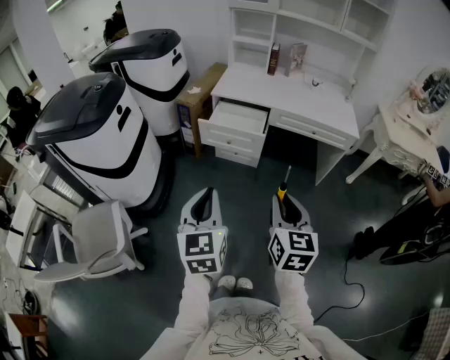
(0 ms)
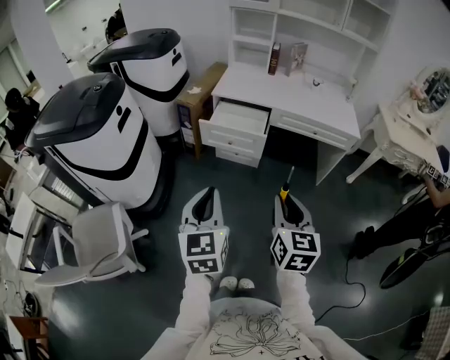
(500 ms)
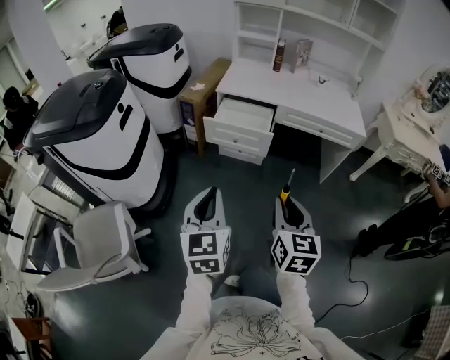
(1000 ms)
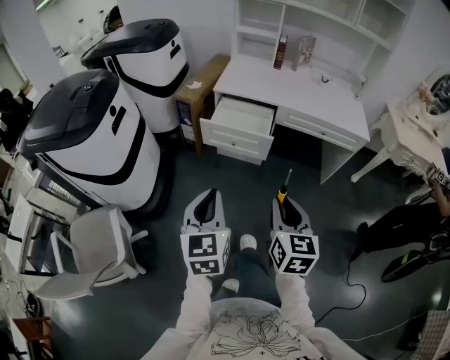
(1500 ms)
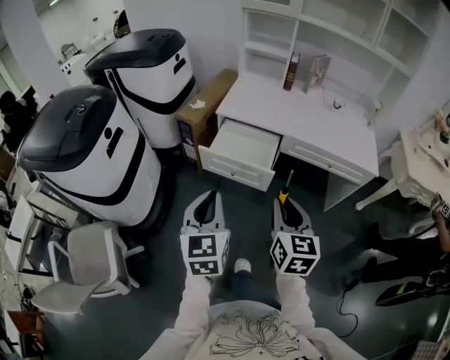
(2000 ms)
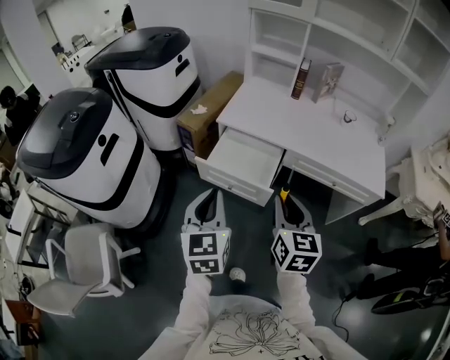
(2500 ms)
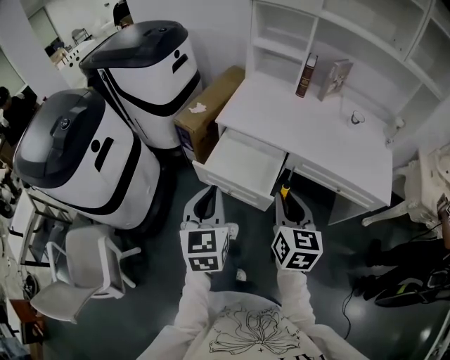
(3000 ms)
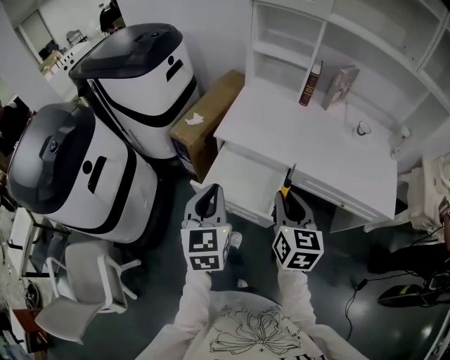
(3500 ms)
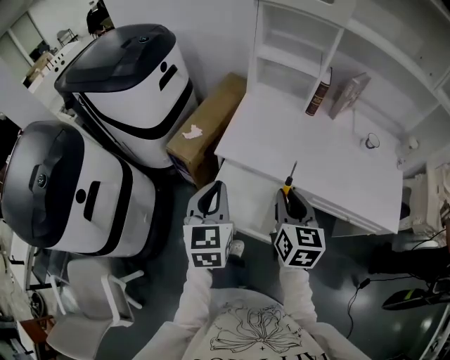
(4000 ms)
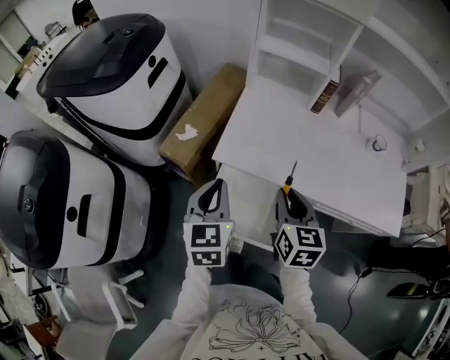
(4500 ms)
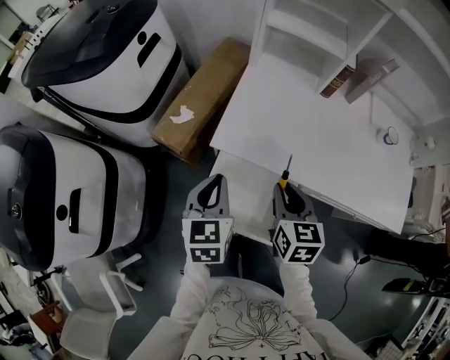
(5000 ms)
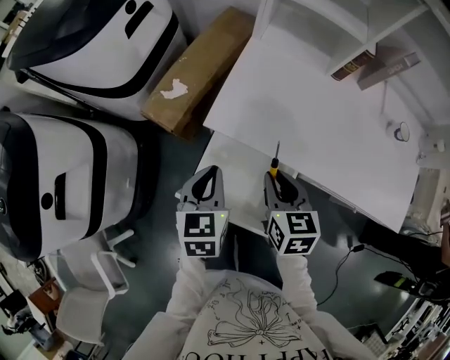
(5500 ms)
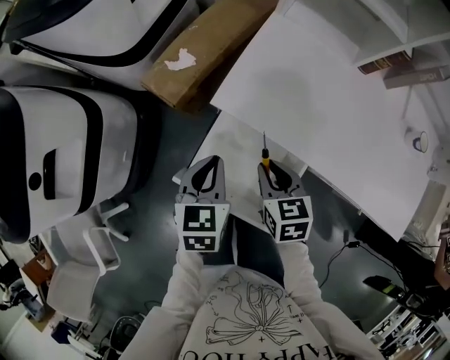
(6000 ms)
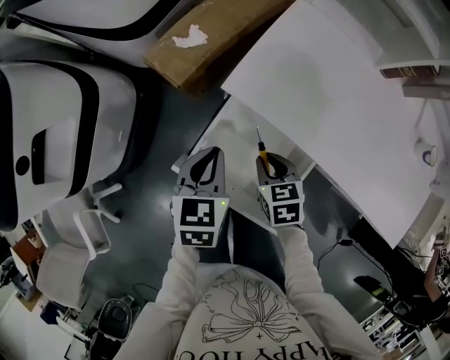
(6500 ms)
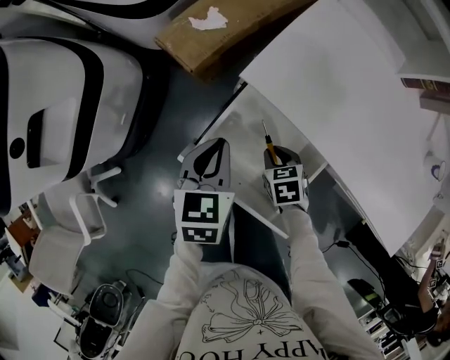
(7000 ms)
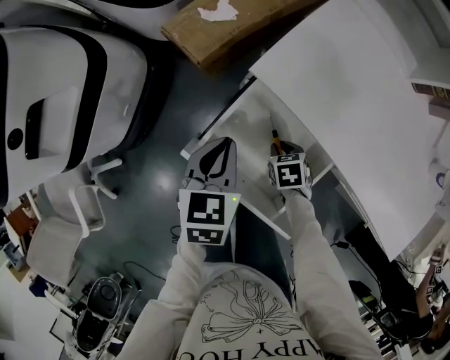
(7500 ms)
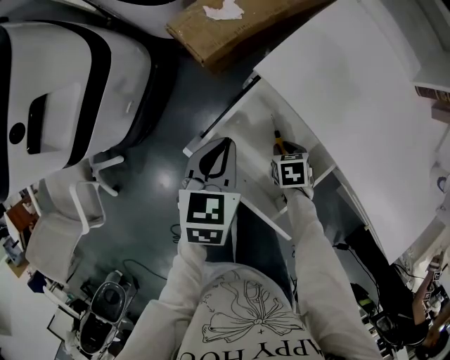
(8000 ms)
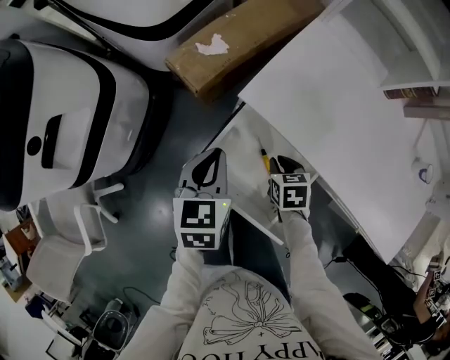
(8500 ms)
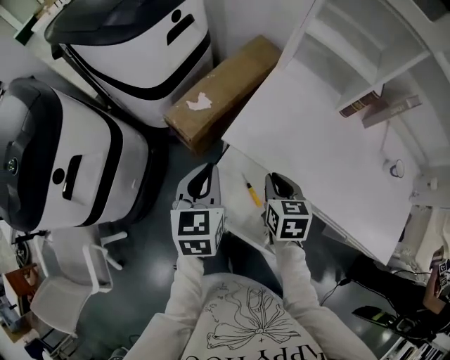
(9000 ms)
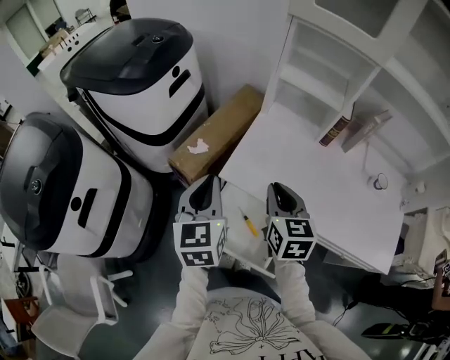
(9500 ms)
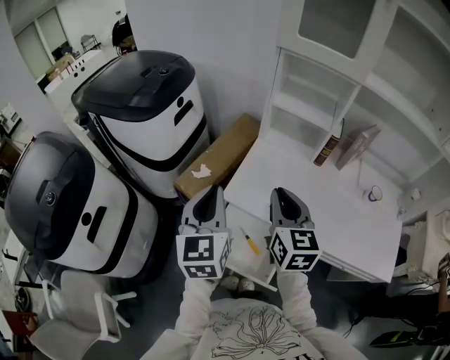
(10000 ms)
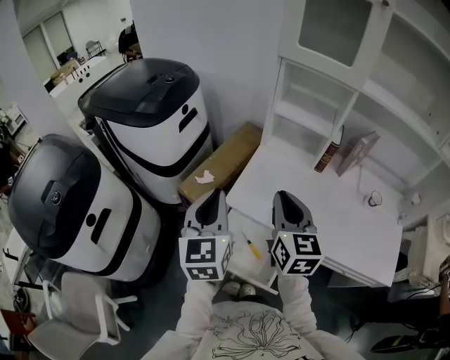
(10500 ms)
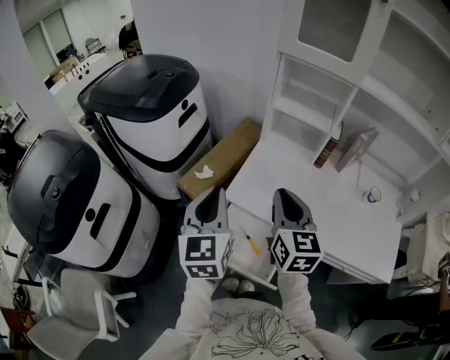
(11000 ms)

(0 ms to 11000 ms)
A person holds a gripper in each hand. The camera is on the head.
0 ms - 2000 ms: The grippers both shift forward by roughly 25 cm.
2000 ms - 3500 ms: The two grippers go approximately 25 cm forward.
3500 ms - 5500 ms: The grippers both shift forward and downward by approximately 25 cm. The right gripper turns by about 20 degrees. The left gripper swivels roughly 20 degrees.
5500 ms - 7500 ms: The left gripper moves downward, about 10 cm. The right gripper shifts some 30 cm downward, and angles its fingers downward, by some 30 degrees.
7500 ms - 9000 ms: The right gripper goes approximately 30 cm upward, and angles its fingers upward, by roughly 30 degrees. Meanwhile the left gripper travels upward by some 15 cm.
9000 ms - 11000 ms: The grippers both shift upward by about 20 cm. The right gripper tilts its fingers roughly 30 degrees upward. The left gripper turns by some 20 degrees.

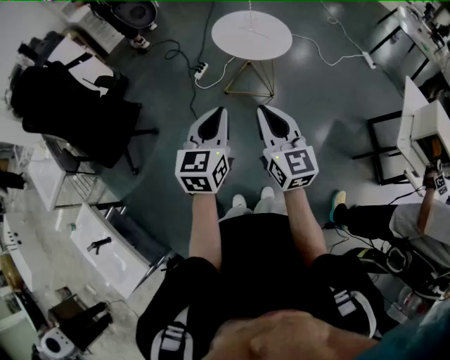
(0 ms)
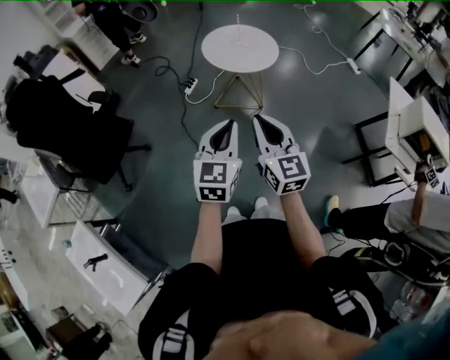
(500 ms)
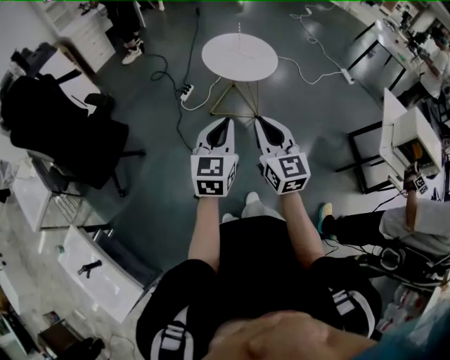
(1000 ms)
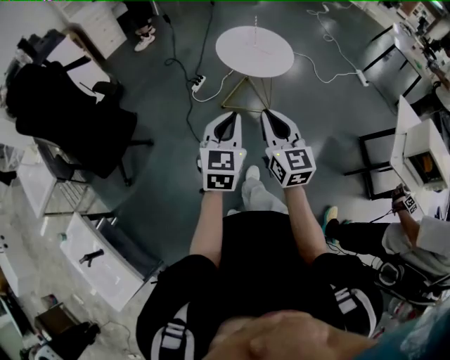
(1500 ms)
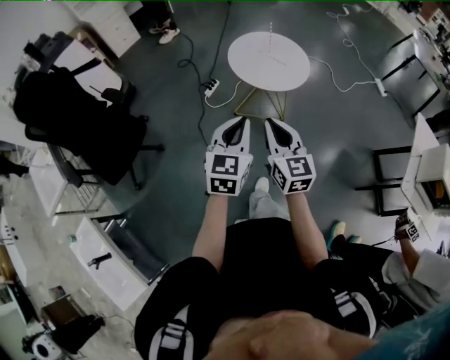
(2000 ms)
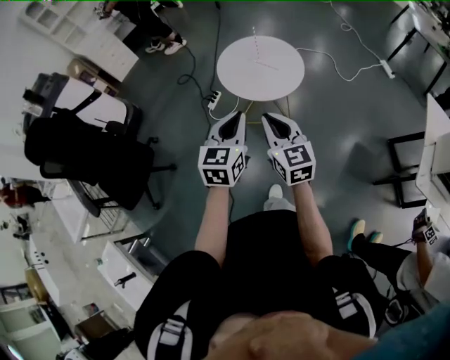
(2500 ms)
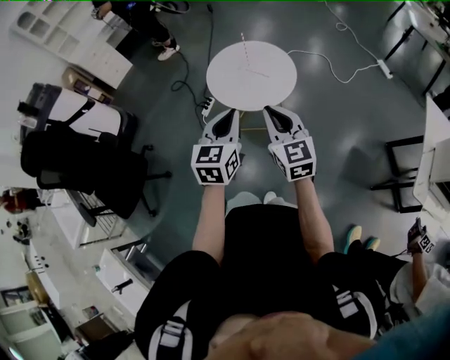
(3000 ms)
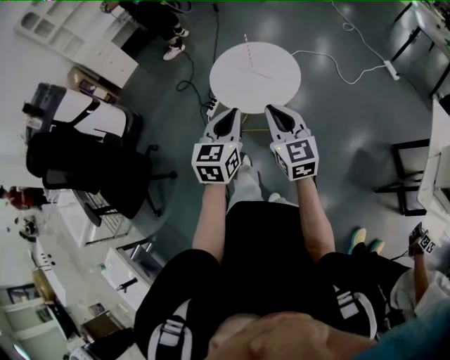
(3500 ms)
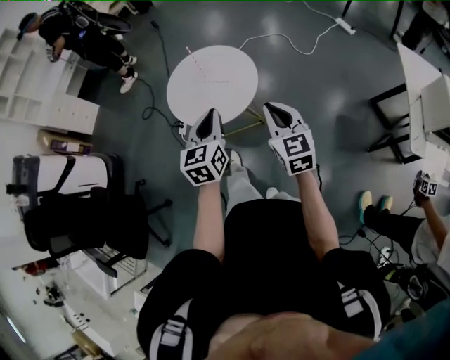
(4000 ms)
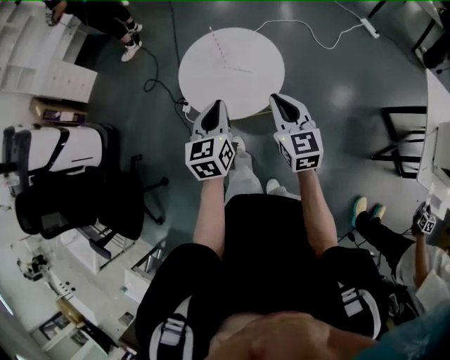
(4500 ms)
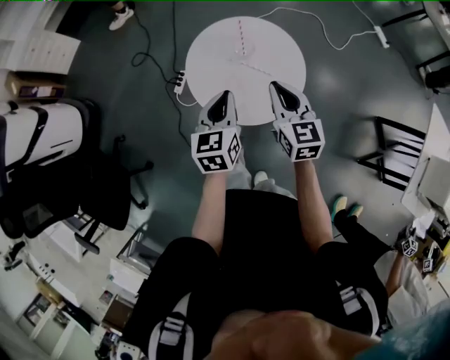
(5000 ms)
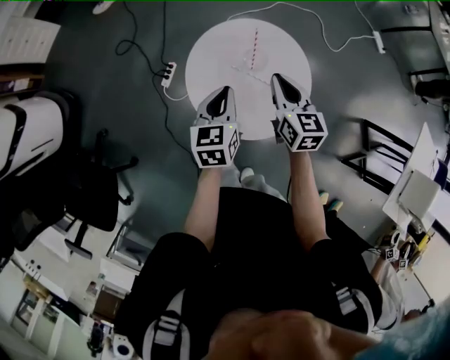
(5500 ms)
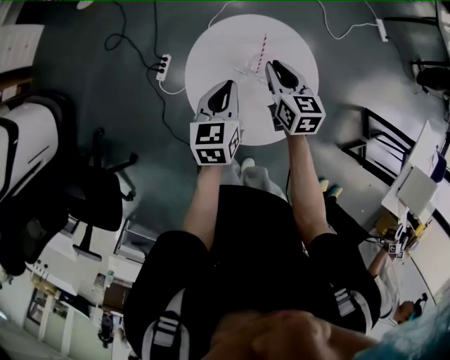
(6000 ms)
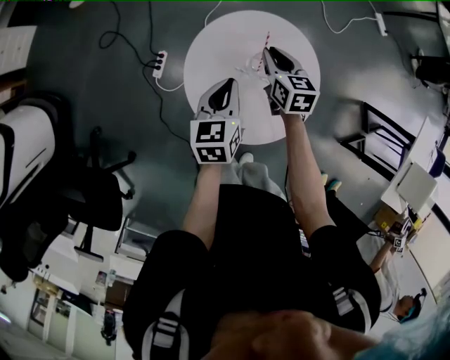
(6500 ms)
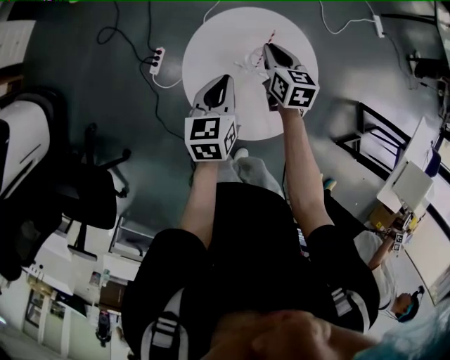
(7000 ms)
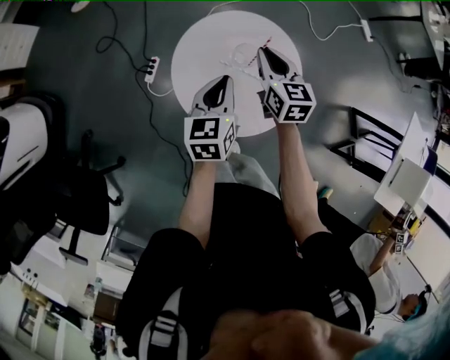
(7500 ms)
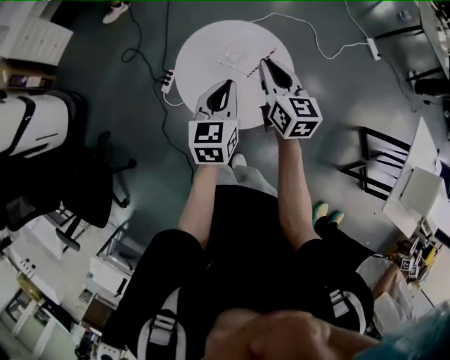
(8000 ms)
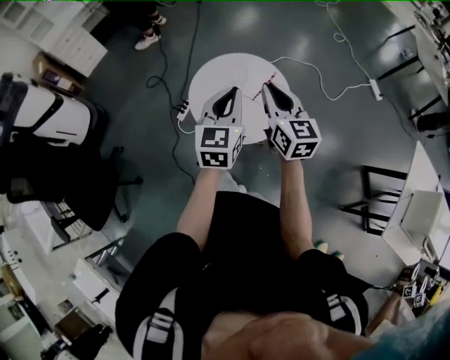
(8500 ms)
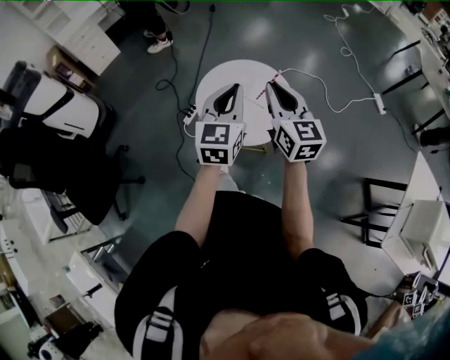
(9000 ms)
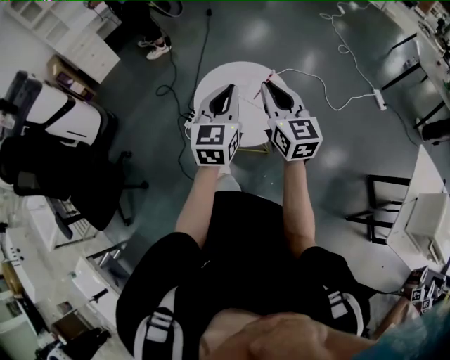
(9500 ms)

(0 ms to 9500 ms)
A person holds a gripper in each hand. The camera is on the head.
0 ms - 2000 ms: The right gripper shifts roughly 15 cm forward and downward. The left gripper shifts about 10 cm forward.
2000 ms - 4000 ms: The right gripper travels to the right and forward by approximately 30 cm. The left gripper moves forward and to the right, about 30 cm.
4000 ms - 5500 ms: The right gripper moves forward and to the left, approximately 40 cm. The left gripper moves forward, to the left and downward, roughly 35 cm, and changes its angle by some 20 degrees.
5500 ms - 7500 ms: The right gripper moves forward, roughly 5 cm, and reaches about 10 cm downward, then returns.
7500 ms - 9500 ms: The left gripper is displaced upward and backward by roughly 30 cm, and changes its angle by some 30 degrees, while the right gripper shifts some 35 cm backward and upward, and turns by roughly 30 degrees.

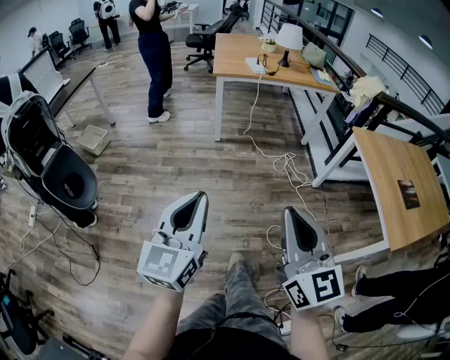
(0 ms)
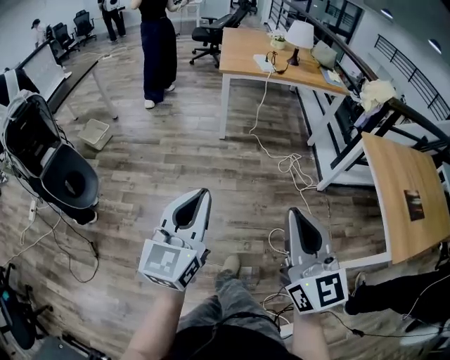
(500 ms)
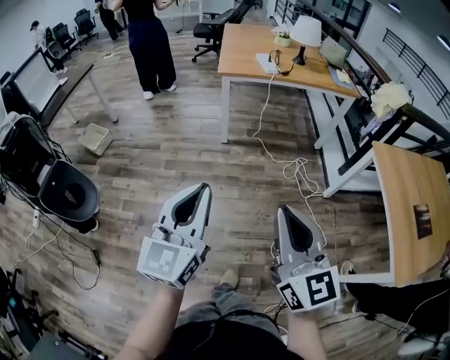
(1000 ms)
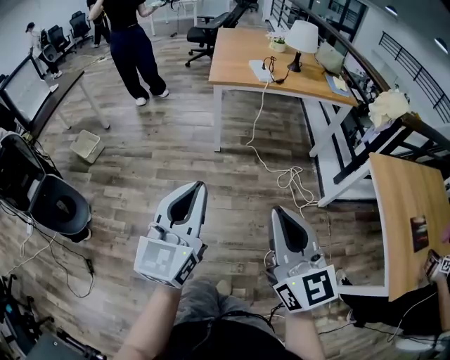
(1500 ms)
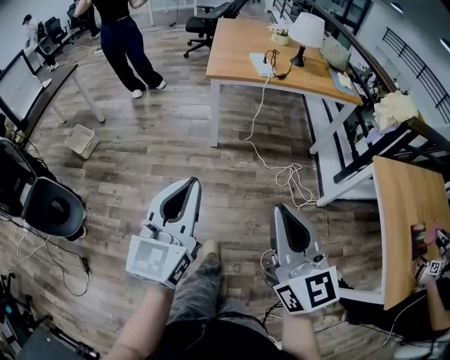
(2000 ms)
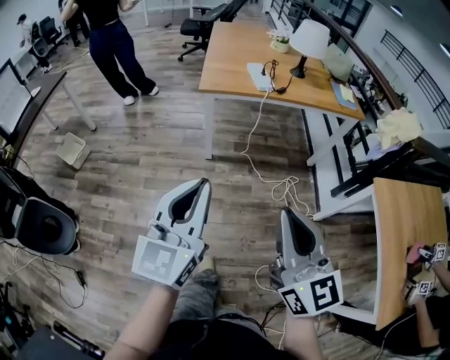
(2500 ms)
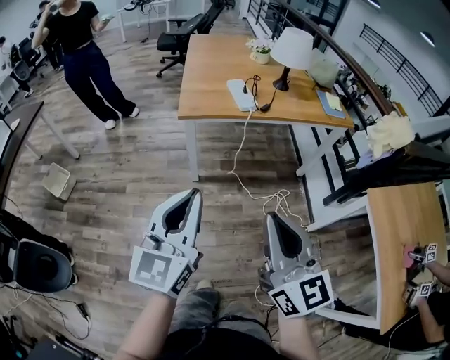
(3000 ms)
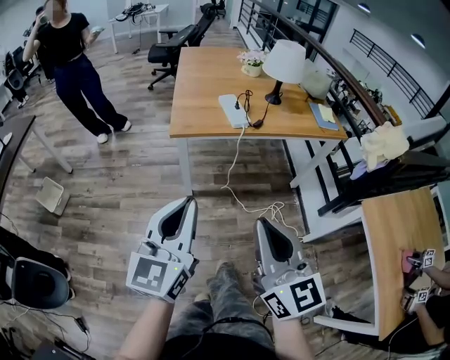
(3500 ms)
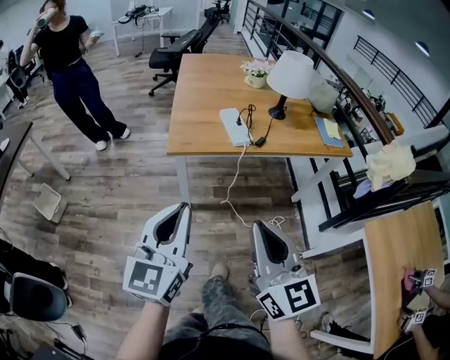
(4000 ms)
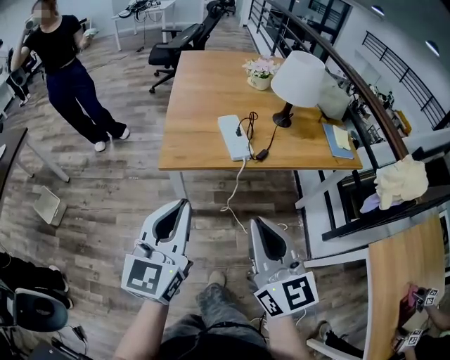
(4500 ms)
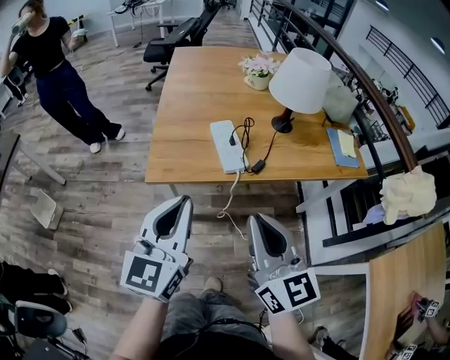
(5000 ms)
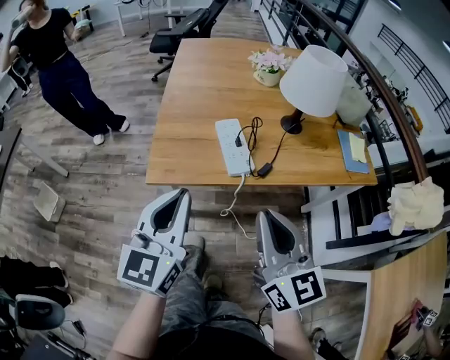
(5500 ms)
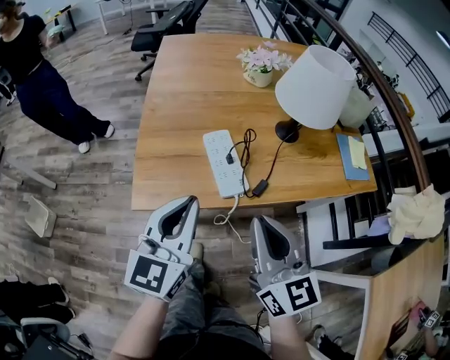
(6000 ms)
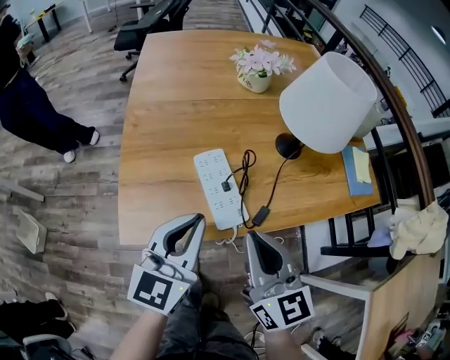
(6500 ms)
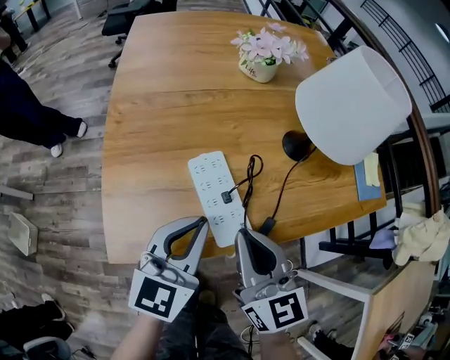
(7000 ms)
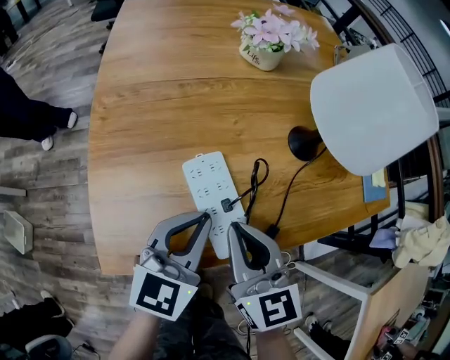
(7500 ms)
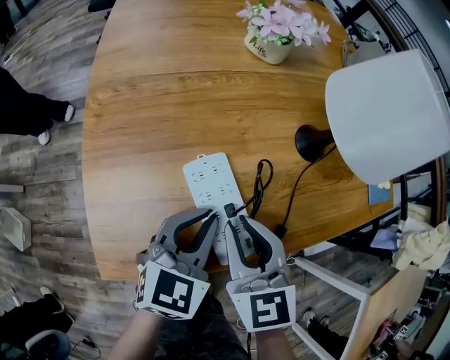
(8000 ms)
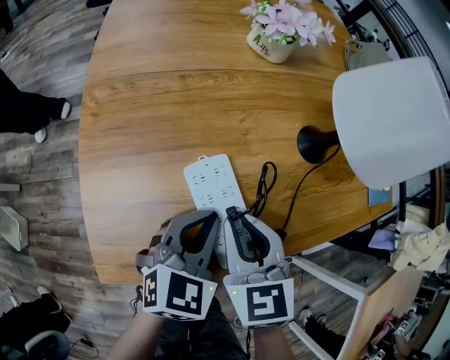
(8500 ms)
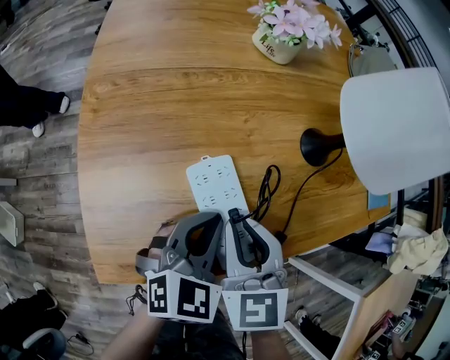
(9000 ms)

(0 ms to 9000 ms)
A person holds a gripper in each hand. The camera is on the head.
0 ms - 2000 ms: Both grippers travel together forward, roughly 30 cm.
2000 ms - 4500 ms: Both grippers are carried forward, roughly 50 cm.
4500 ms - 7000 ms: The two grippers go approximately 35 cm forward and downward. The left gripper swivels about 20 degrees.
7000 ms - 9000 ms: The two grippers go some 10 cm downward and forward. The left gripper changes its angle by some 20 degrees; the right gripper rotates roughly 30 degrees.
